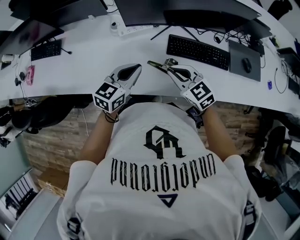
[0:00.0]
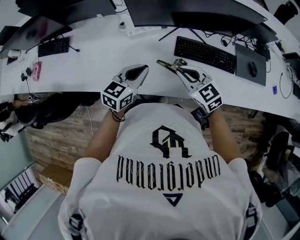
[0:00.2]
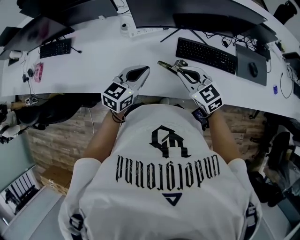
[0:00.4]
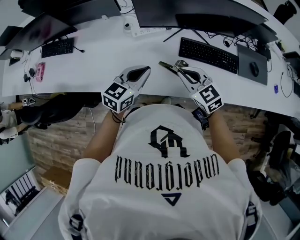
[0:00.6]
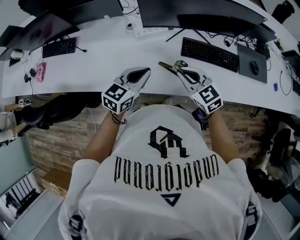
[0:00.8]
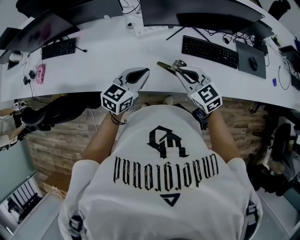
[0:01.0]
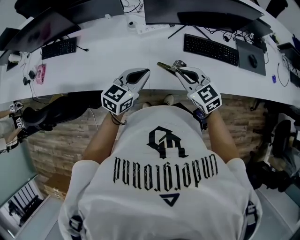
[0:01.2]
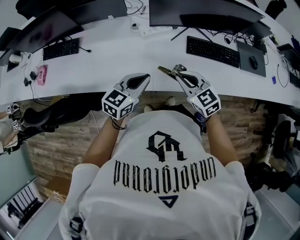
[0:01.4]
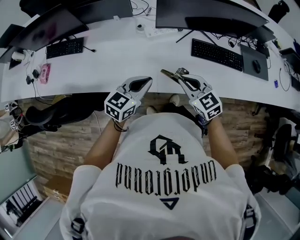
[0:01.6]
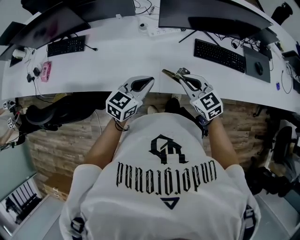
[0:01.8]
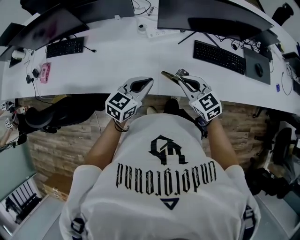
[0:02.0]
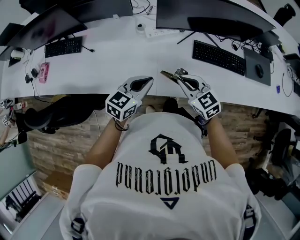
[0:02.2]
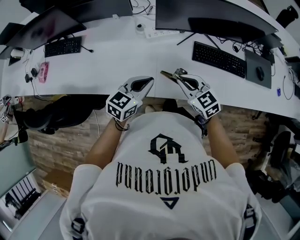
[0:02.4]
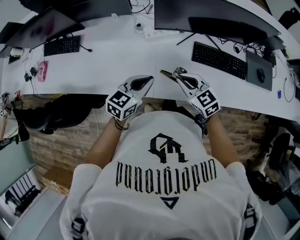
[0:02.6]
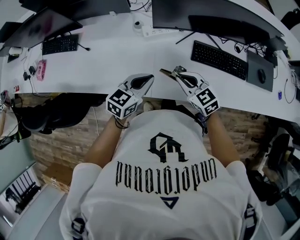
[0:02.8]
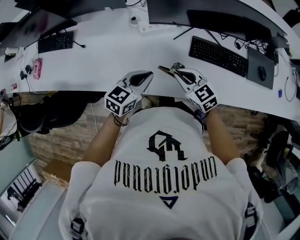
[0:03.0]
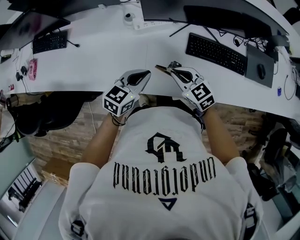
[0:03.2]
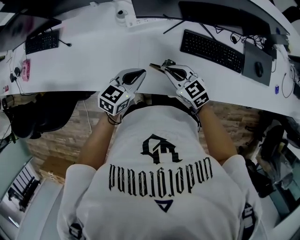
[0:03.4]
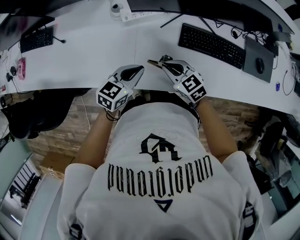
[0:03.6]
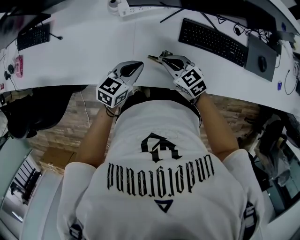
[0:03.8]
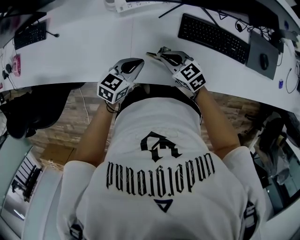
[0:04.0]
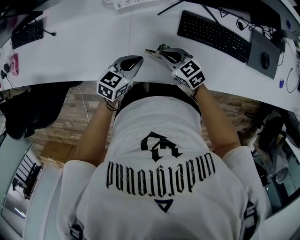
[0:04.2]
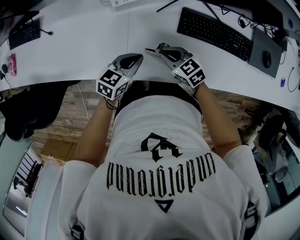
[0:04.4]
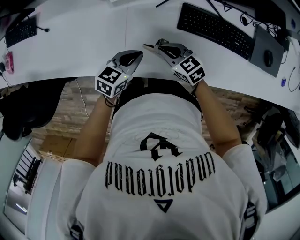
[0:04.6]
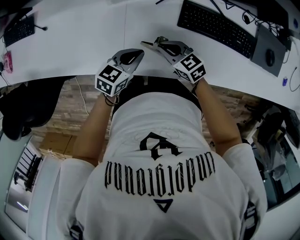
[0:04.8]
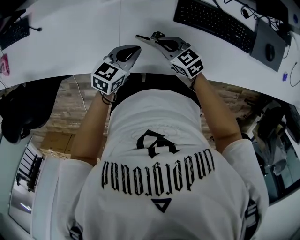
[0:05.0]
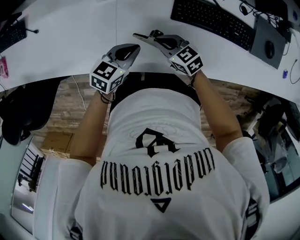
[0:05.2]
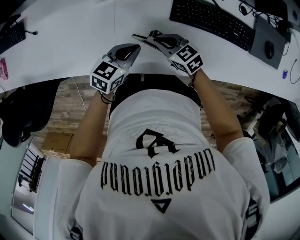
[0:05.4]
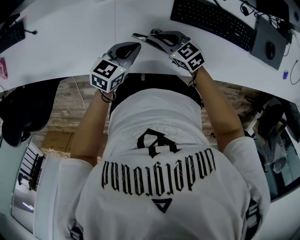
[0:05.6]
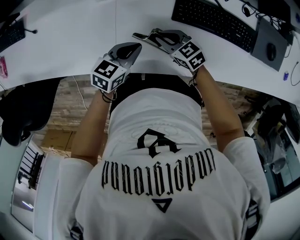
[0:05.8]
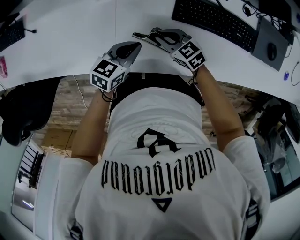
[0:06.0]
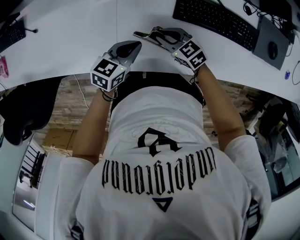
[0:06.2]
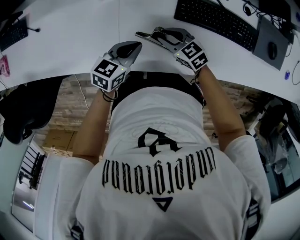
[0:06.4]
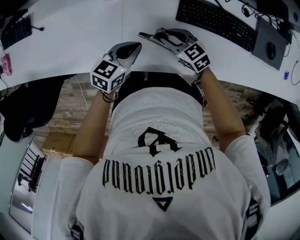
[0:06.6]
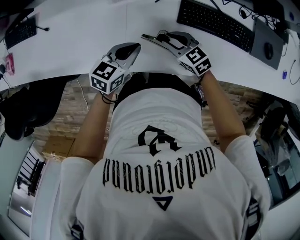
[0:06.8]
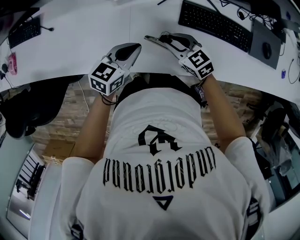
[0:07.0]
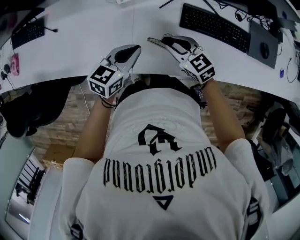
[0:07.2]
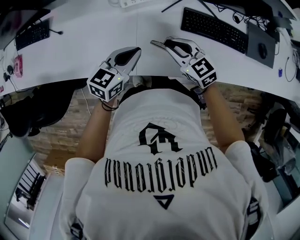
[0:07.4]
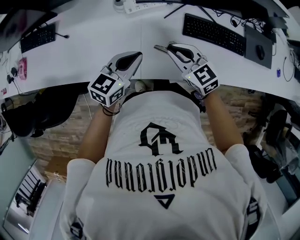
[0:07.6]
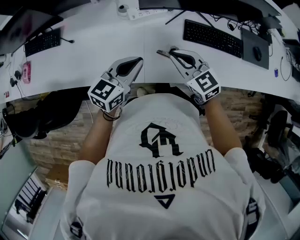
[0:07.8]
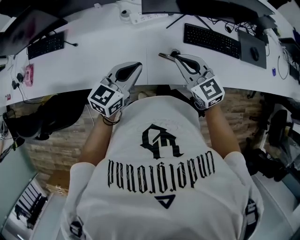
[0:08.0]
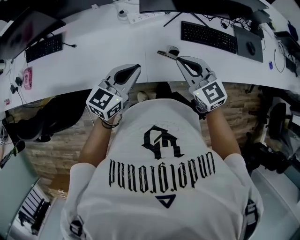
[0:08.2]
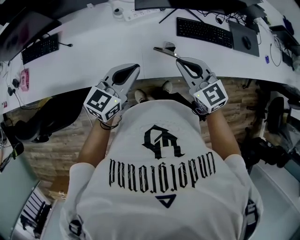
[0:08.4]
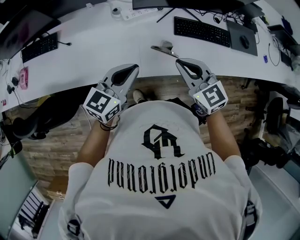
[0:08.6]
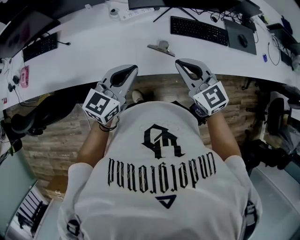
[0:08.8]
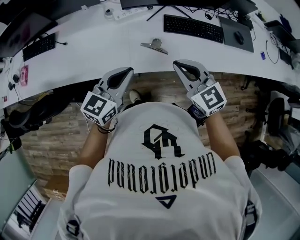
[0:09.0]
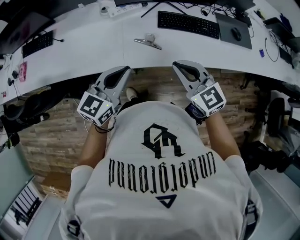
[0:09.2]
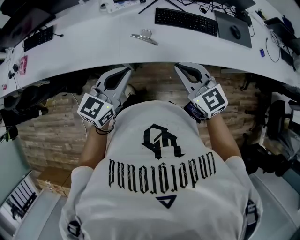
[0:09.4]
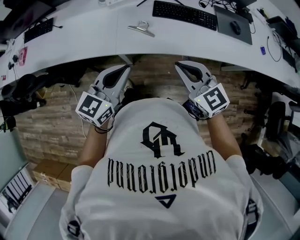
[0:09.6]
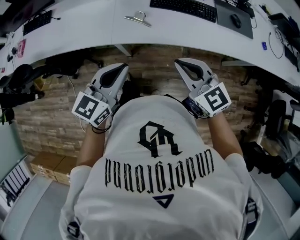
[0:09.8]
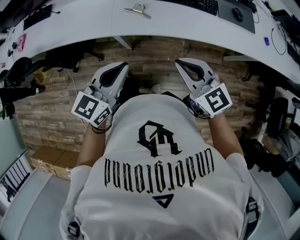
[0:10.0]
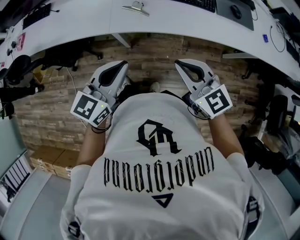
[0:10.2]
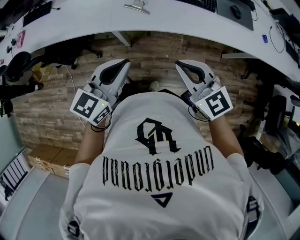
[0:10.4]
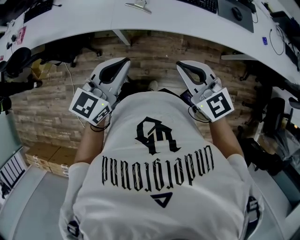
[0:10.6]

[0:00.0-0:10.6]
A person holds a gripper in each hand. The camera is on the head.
0:00.0 to 0:01.6: The grippers both shift to the left and backward by roughly 15 cm.
0:01.6 to 0:03.0: The right gripper is displaced forward and downward by about 10 cm. Meanwhile the left gripper moves forward, to the right and downward, approximately 10 cm.
0:03.0 to 0:04.6: The right gripper moves downward, about 15 cm. The left gripper goes about 15 cm downward and to the right.
0:04.6 to 0:06.0: The right gripper moves some 5 cm.
0:06.0 to 0:07.6: The left gripper goes some 20 cm upward and to the left, and swivels approximately 20 degrees, while the right gripper is displaced upward by some 20 cm, and turns by about 20 degrees.
0:07.6 to 0:09.0: The left gripper heads backward and upward, covering approximately 20 cm; the right gripper travels backward, upward and to the right by about 20 cm.
0:09.0 to 0:10.6: The two grippers go about 25 cm backward and to the right.

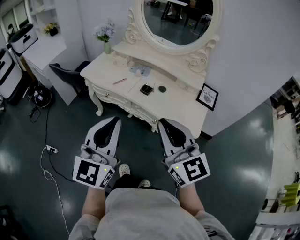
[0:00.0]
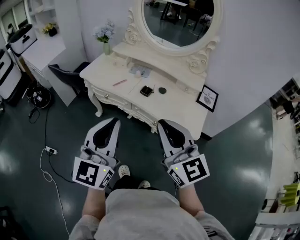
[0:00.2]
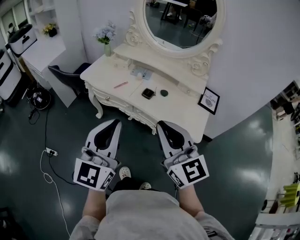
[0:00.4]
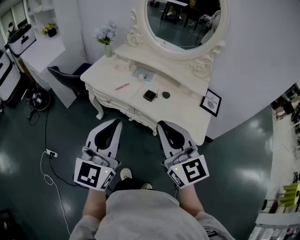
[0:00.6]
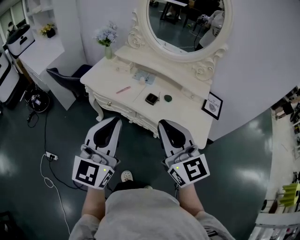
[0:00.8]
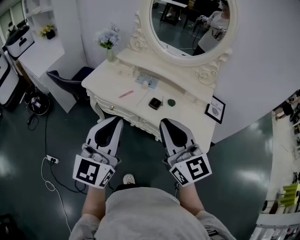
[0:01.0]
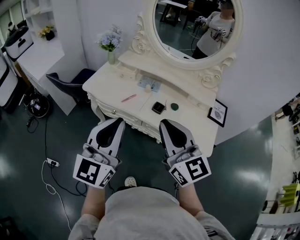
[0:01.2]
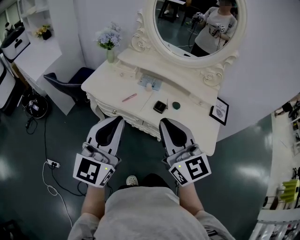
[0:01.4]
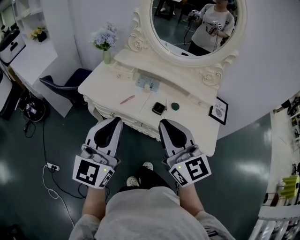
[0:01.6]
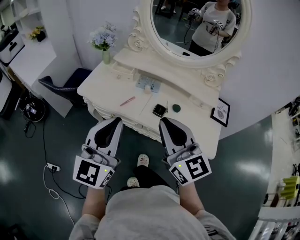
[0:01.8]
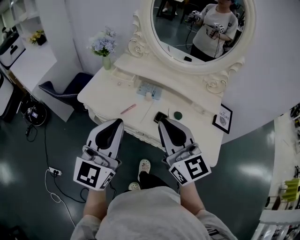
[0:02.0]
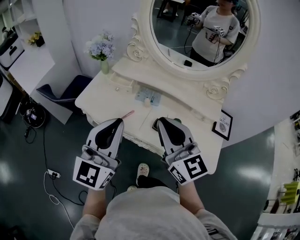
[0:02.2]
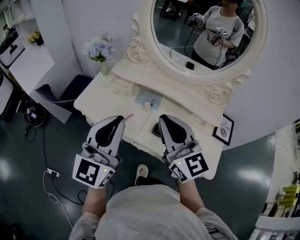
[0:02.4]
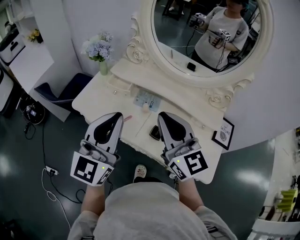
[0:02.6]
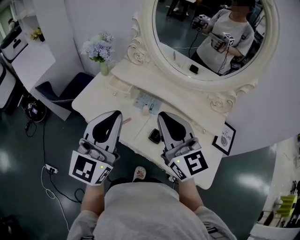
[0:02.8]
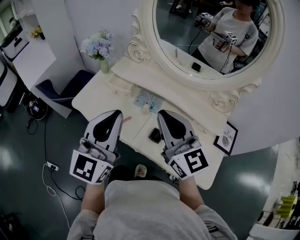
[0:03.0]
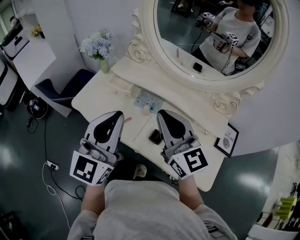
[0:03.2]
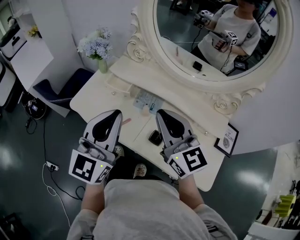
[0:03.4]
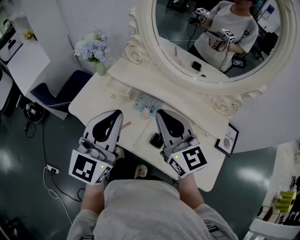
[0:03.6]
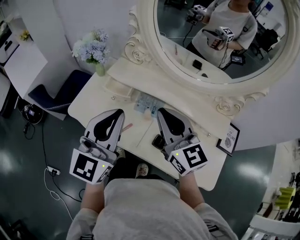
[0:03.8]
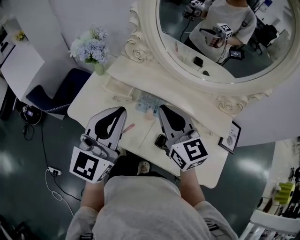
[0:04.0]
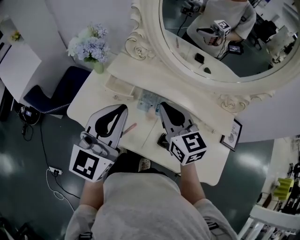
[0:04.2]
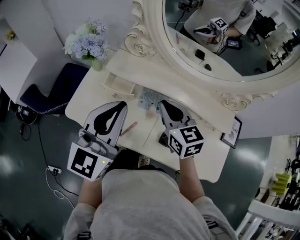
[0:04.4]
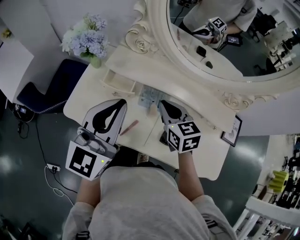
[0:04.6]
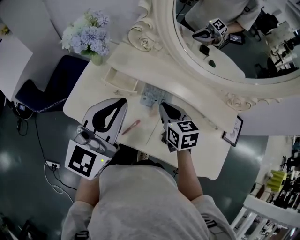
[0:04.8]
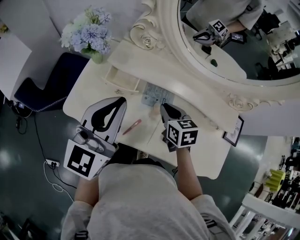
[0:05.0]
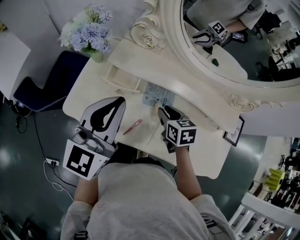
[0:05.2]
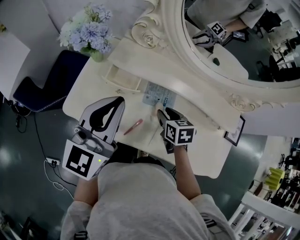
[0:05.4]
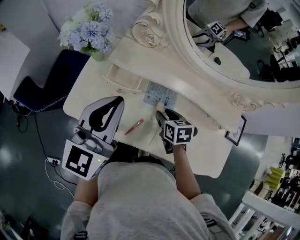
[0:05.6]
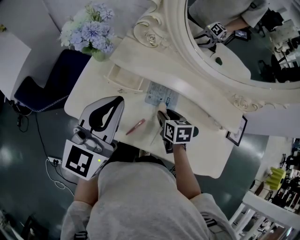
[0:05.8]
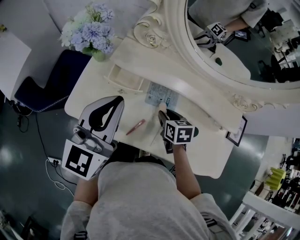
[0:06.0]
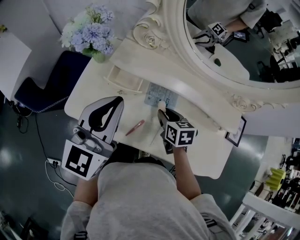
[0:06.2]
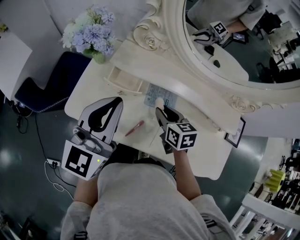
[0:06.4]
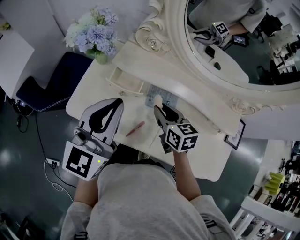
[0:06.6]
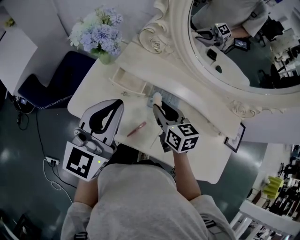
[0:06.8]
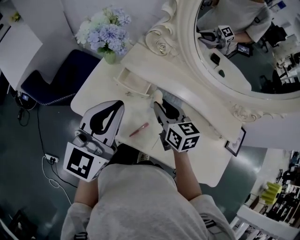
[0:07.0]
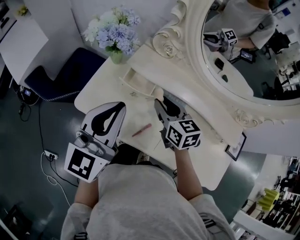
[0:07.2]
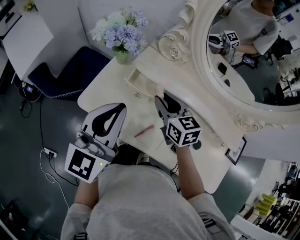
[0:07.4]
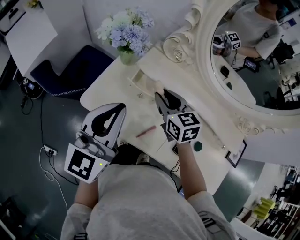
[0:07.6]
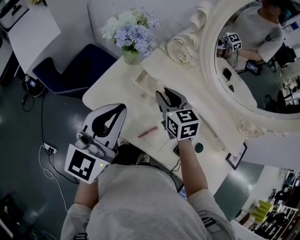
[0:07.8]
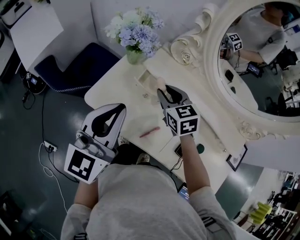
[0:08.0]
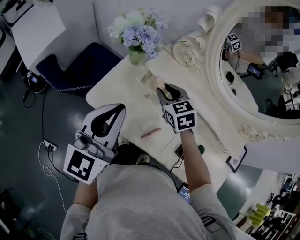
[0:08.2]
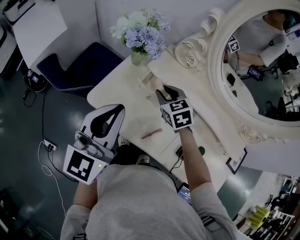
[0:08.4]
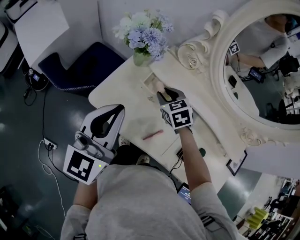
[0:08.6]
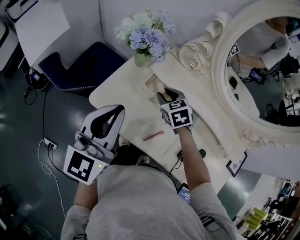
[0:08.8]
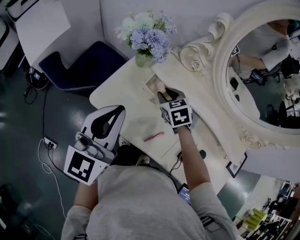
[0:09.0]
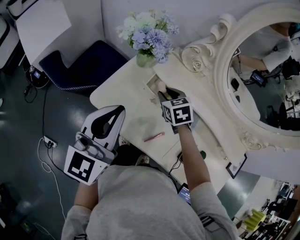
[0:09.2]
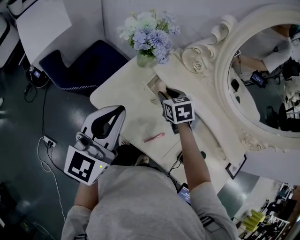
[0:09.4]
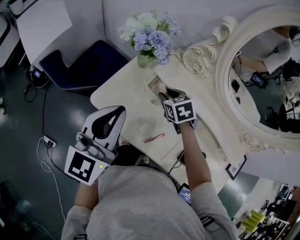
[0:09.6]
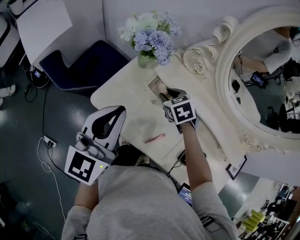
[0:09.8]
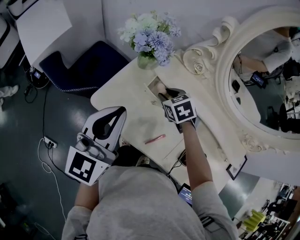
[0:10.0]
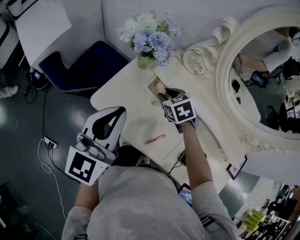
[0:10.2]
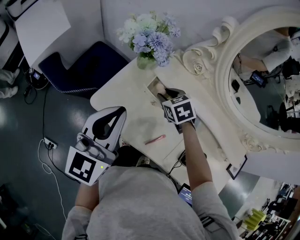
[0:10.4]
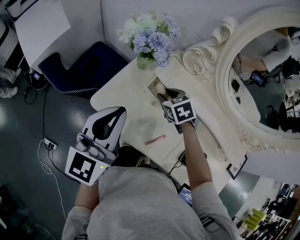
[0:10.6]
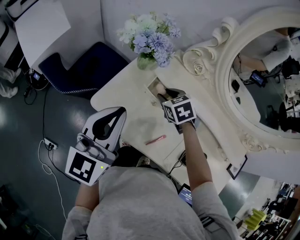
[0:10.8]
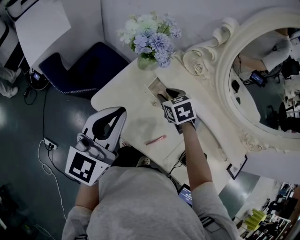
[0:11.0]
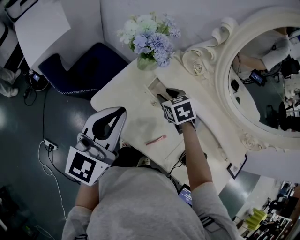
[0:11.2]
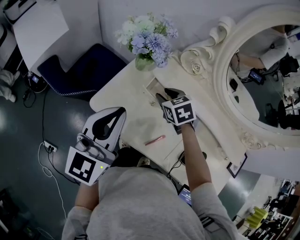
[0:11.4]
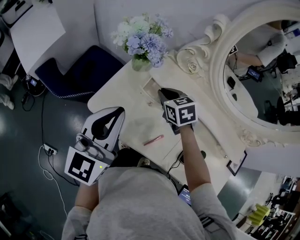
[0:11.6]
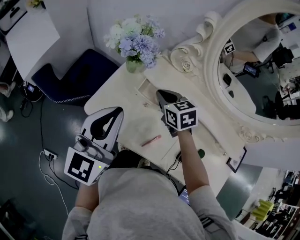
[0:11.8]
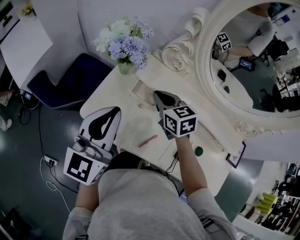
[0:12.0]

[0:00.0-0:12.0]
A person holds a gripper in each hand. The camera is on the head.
0:00.0 to 0:01.6: Both grippers move forward and to the left, some 20 cm.
0:01.6 to 0:03.0: Both grippers move forward, roughly 20 cm.
0:03.0 to 0:04.4: The left gripper goes approximately 10 cm forward. Meanwhile the right gripper goes approximately 20 cm forward and downward, and turns by approximately 30 degrees.
0:04.4 to 0:06.0: The left gripper shifts by about 5 cm. Meanwhile the right gripper goes approximately 20 cm downward, turns by roughly 40 degrees, and opens.
0:06.0 to 0:07.6: The right gripper heads upward, to the left and forward, covering approximately 20 cm, and turns by roughly 40 degrees, while the left gripper moves to the left, about 5 cm.
0:07.6 to 0:09.0: The left gripper travels to the left by about 5 cm. The right gripper travels downward by some 10 cm, and rotates approximately 30 degrees.
0:09.0 to 0:10.4: The grippers move only a little.
0:10.4 to 0:12.0: The right gripper moves upward, approximately 10 cm, rotates some 30 degrees, and closes up.

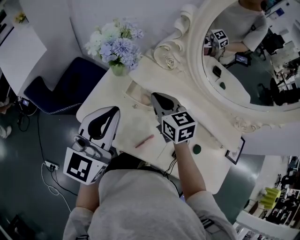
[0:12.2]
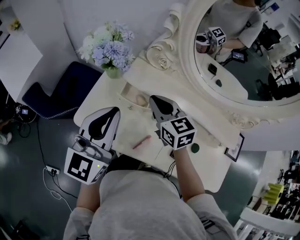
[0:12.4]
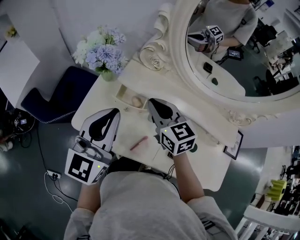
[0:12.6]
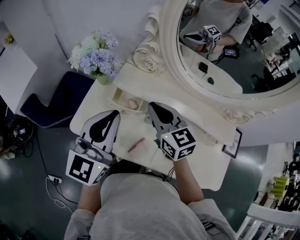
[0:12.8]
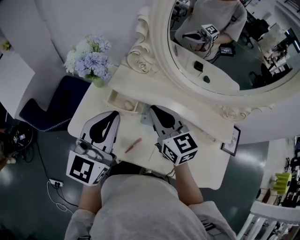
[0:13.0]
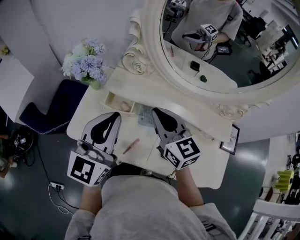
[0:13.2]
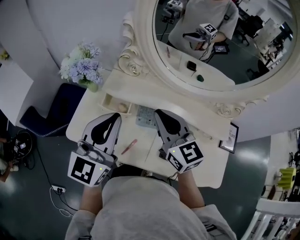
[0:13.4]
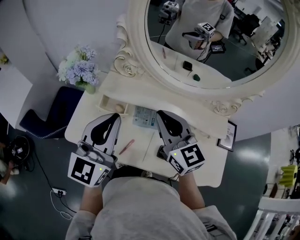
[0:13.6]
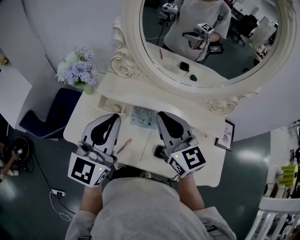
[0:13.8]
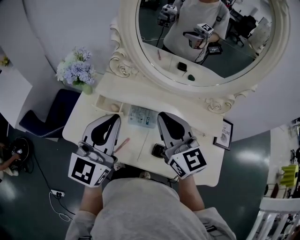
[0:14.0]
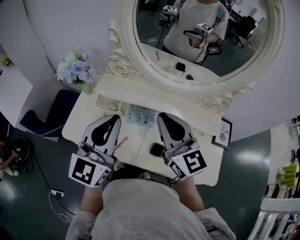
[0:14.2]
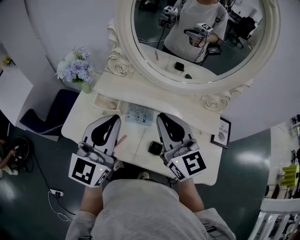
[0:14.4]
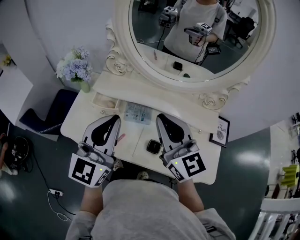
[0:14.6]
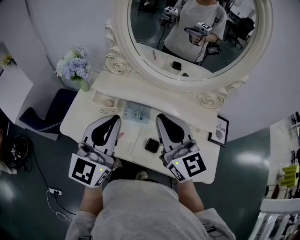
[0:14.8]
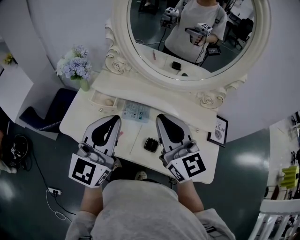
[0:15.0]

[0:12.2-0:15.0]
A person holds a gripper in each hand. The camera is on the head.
0:12.2 to 0:13.6: The right gripper is displaced to the right, upward and backward by some 20 cm, and changes its angle by approximately 20 degrees. The left gripper shifts approximately 10 cm to the right.
0:13.6 to 0:15.0: The left gripper shifts approximately 10 cm backward and to the right. The right gripper heads backward, to the right and upward, covering approximately 10 cm.
